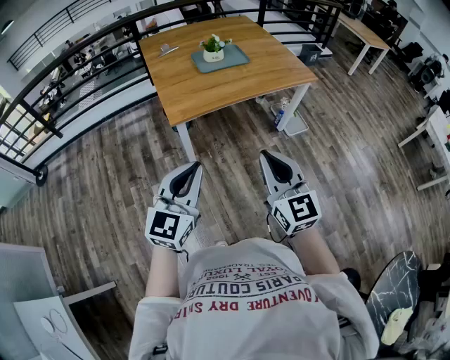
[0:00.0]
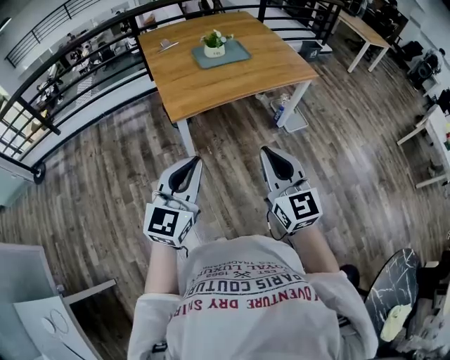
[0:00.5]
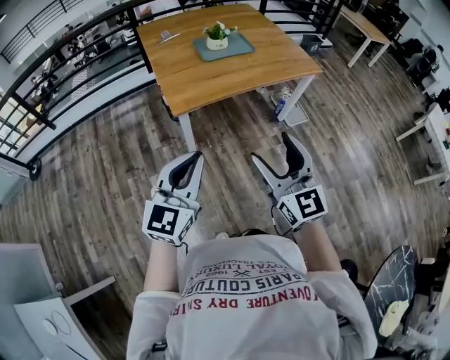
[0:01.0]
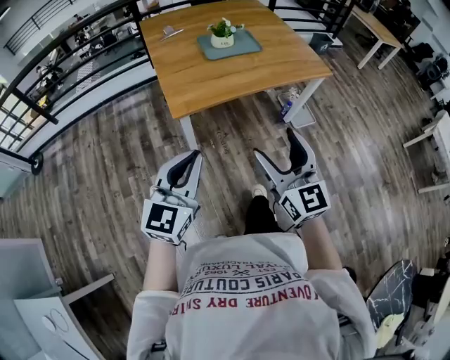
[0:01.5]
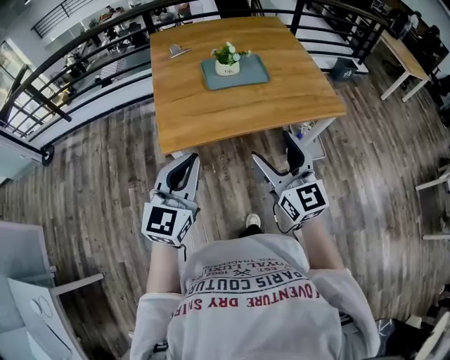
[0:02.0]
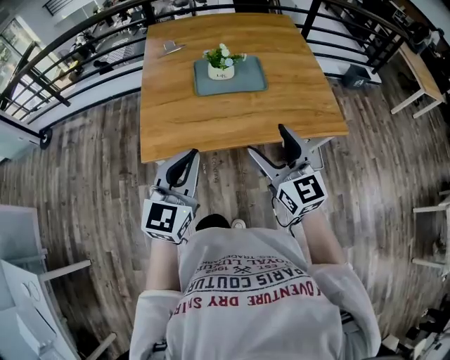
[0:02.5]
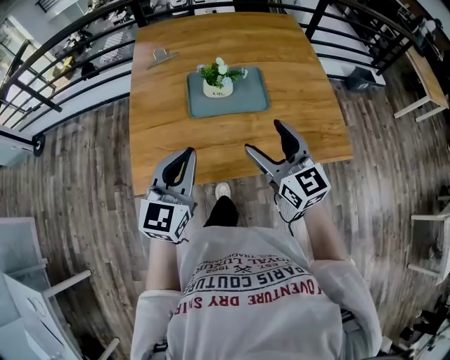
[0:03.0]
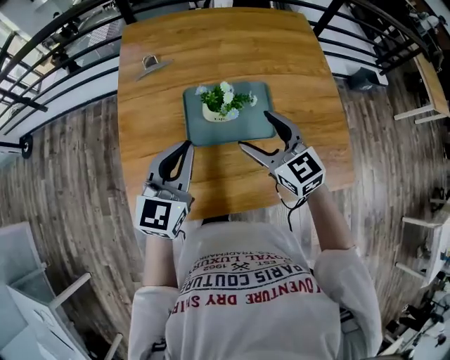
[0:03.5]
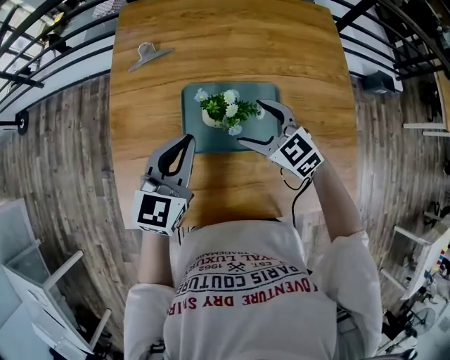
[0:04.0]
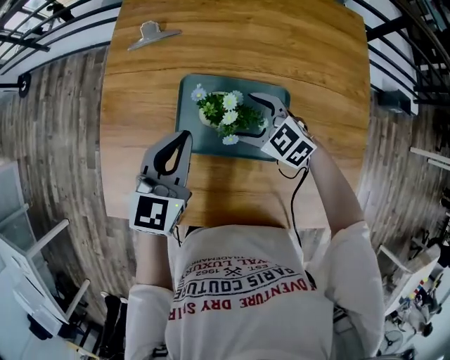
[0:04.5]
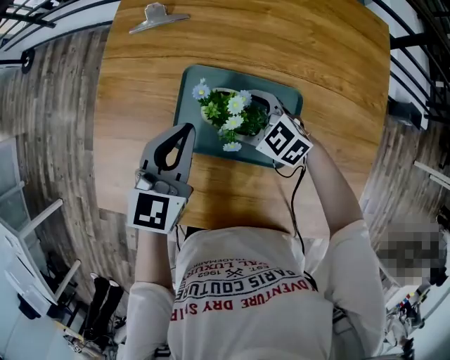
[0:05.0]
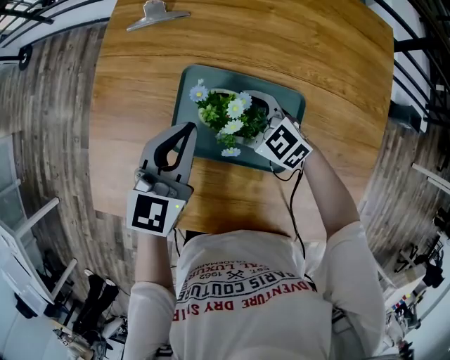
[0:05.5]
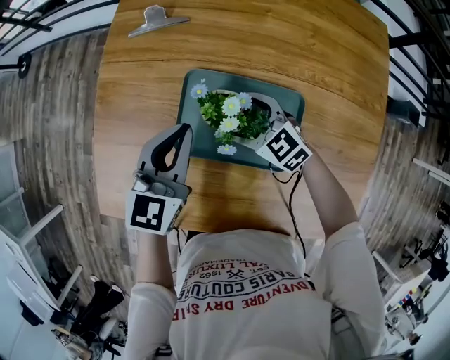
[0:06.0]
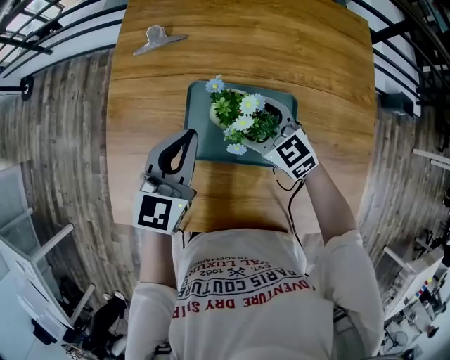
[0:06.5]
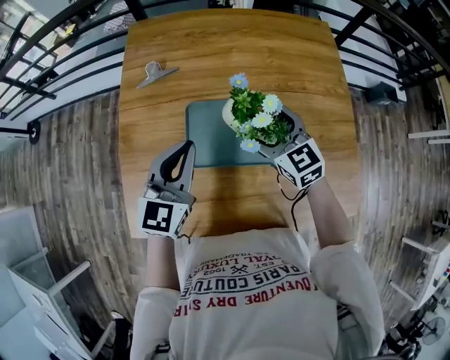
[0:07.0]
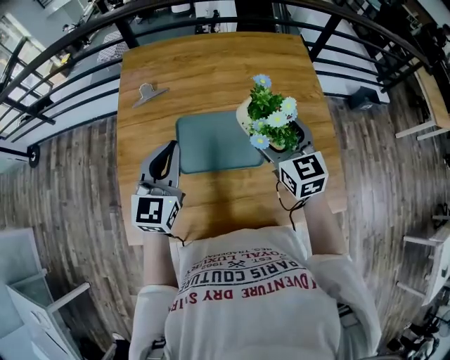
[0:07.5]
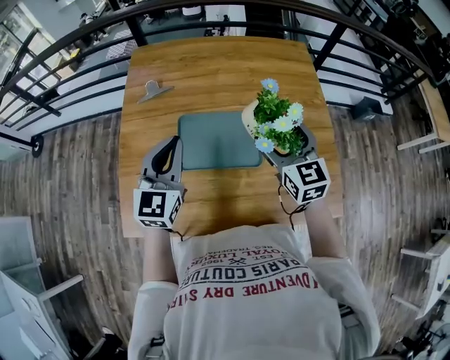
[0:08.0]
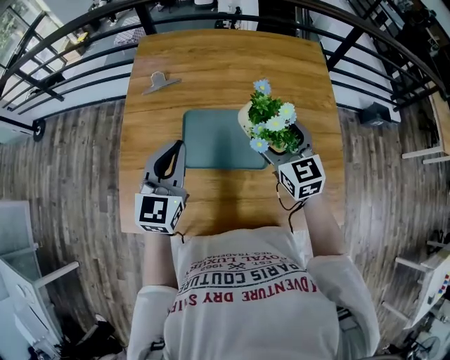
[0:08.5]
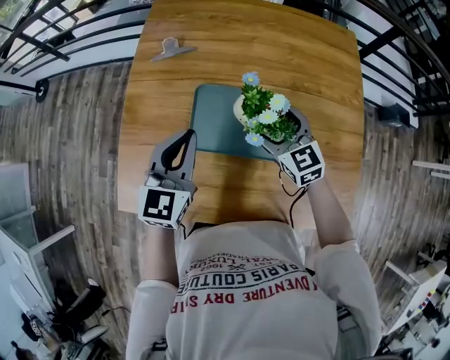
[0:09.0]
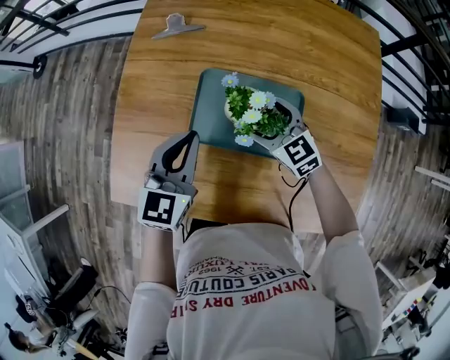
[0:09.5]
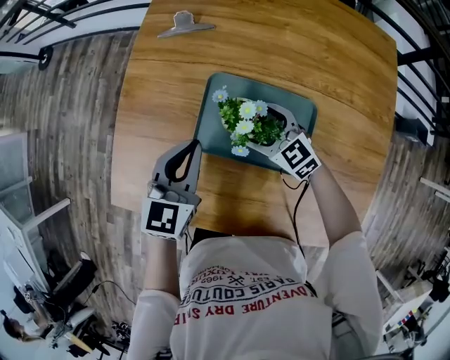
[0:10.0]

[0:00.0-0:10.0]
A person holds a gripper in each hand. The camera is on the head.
0:00.0 to 0:02.0: The grippers both shift forward by roughly 25 cm. The right gripper opens up.
0:02.0 to 0:04.0: Both grippers are carried forward, about 50 cm. The right gripper tips its fingers downward by roughly 30 degrees.
0:04.0 to 0:06.0: The right gripper goes about 15 cm downward and forward. The left gripper goes roughly 10 cm downward and forward.
0:06.0 to 0:08.0: The right gripper is displaced upward by approximately 25 cm, and changes its angle by roughly 50 degrees. Meanwhile the left gripper is displaced upward by about 15 cm.
0:08.0 to 0:10.0: The right gripper moves downward, about 25 cm, and swivels about 50 degrees, while the left gripper is displaced downward by about 15 cm, and swivels about 20 degrees.

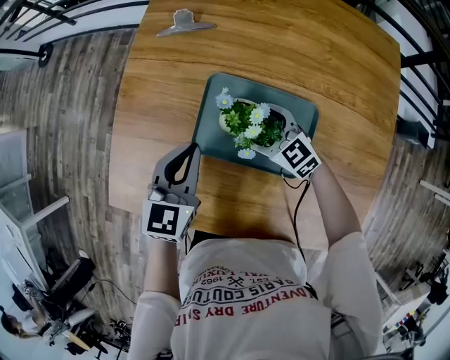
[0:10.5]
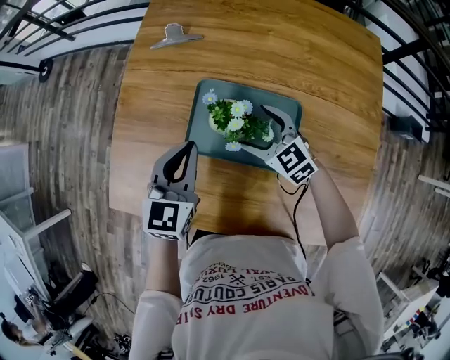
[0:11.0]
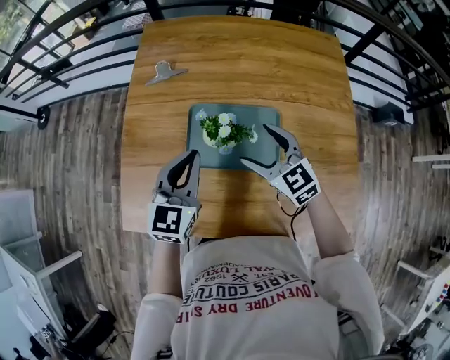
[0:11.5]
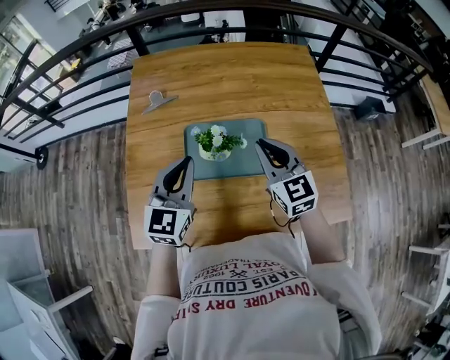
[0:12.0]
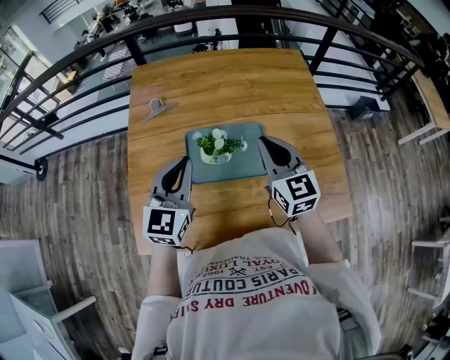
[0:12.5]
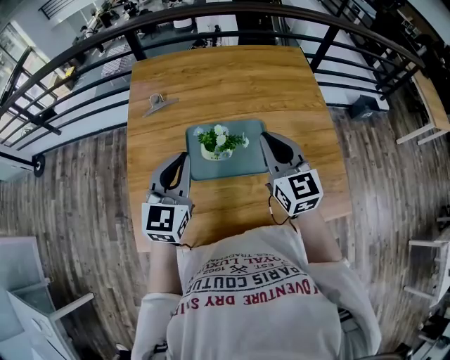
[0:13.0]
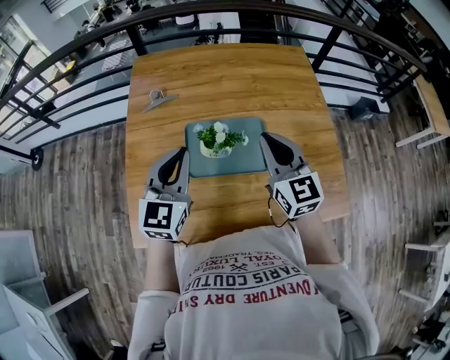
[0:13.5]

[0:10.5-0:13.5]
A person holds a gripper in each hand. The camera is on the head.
0:10.5 to 0:12.0: The right gripper moves upward, roughly 25 cm, rotates about 50 degrees, and closes up, while the left gripper moves upward, about 15 cm, and turns by approximately 20 degrees.
0:12.0 to 0:13.5: The grippers make only small movements.

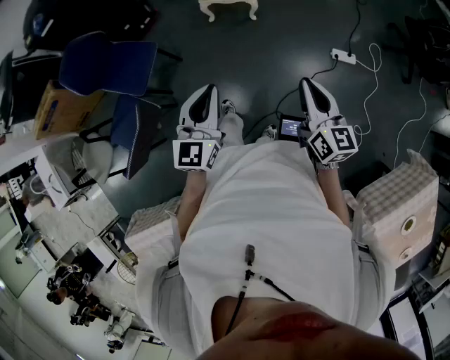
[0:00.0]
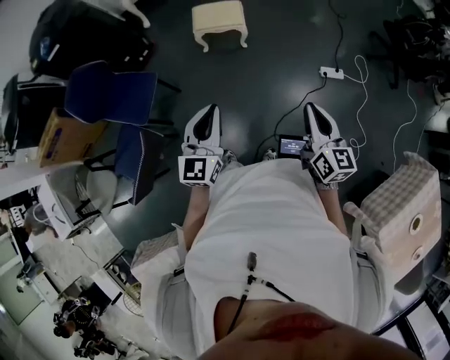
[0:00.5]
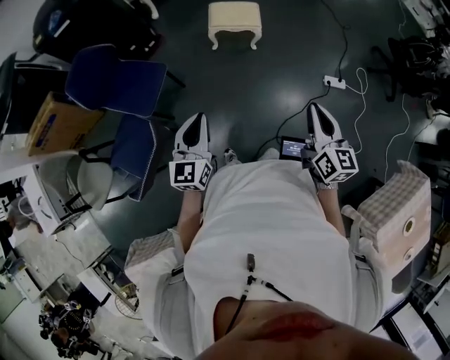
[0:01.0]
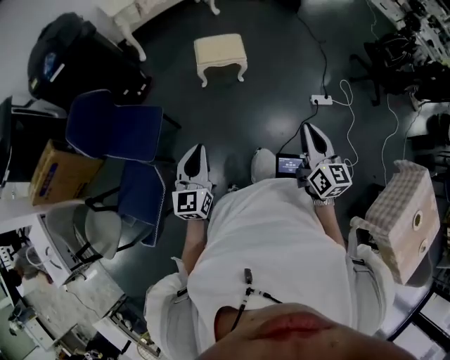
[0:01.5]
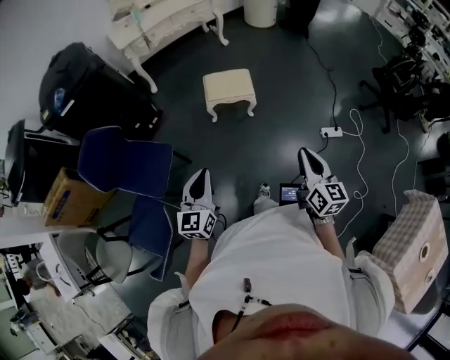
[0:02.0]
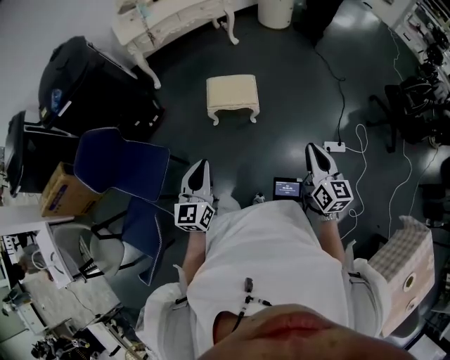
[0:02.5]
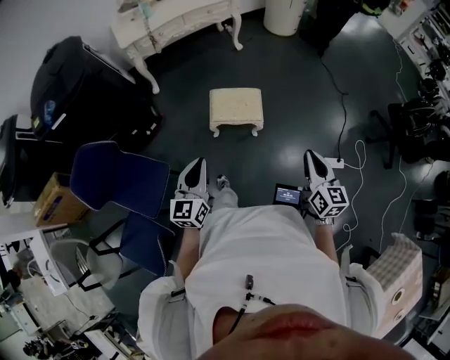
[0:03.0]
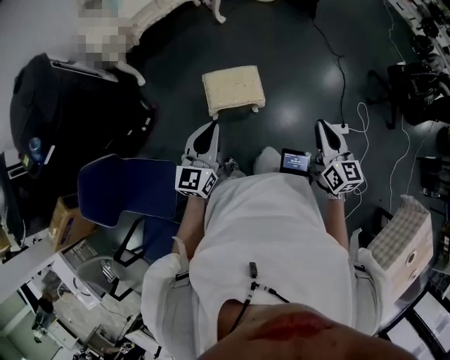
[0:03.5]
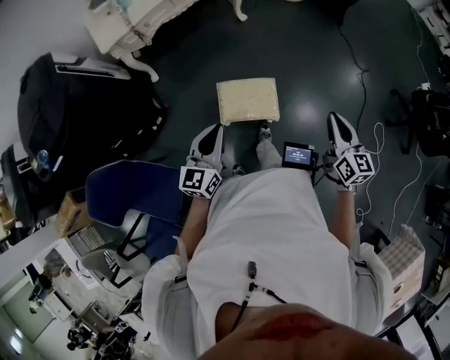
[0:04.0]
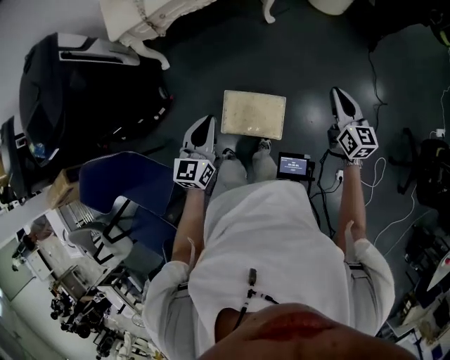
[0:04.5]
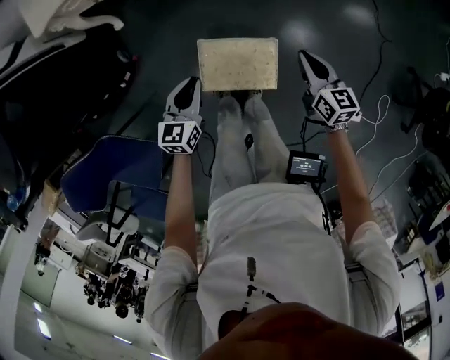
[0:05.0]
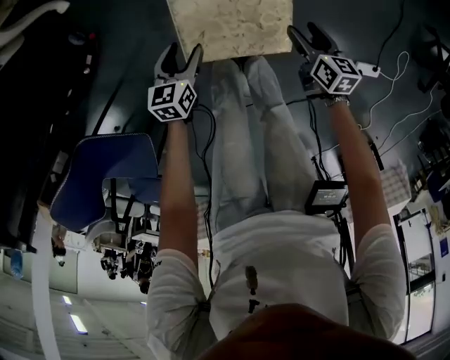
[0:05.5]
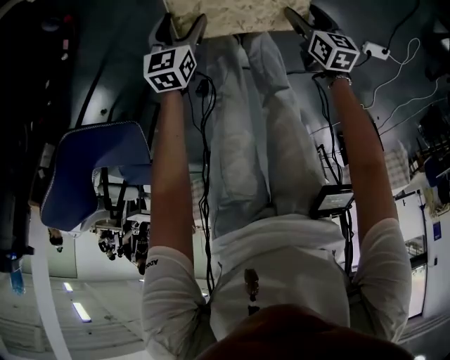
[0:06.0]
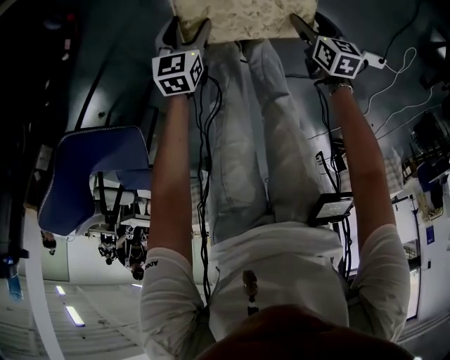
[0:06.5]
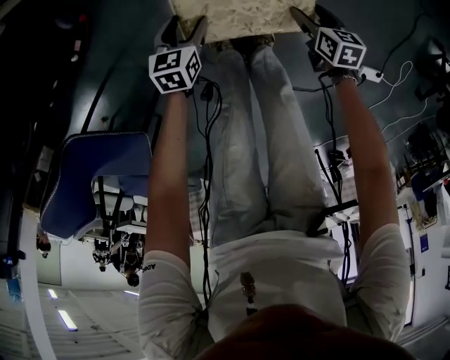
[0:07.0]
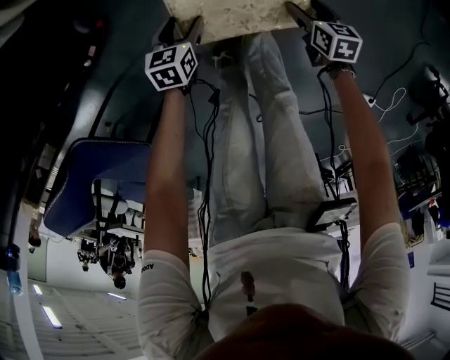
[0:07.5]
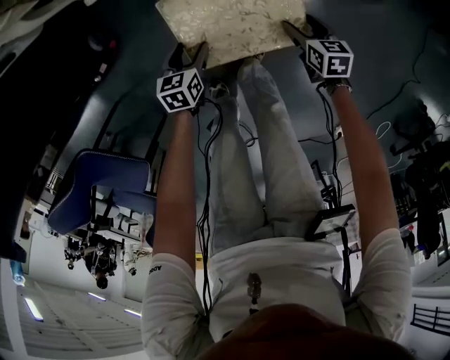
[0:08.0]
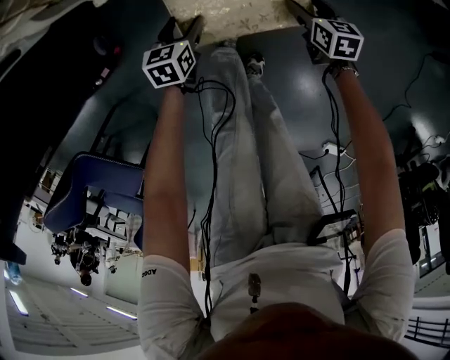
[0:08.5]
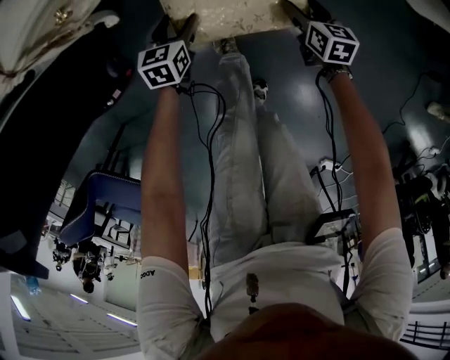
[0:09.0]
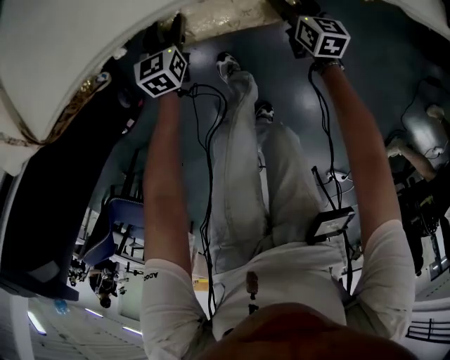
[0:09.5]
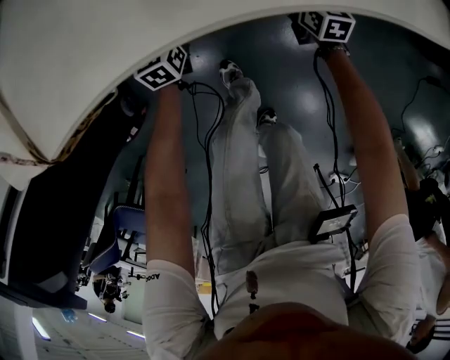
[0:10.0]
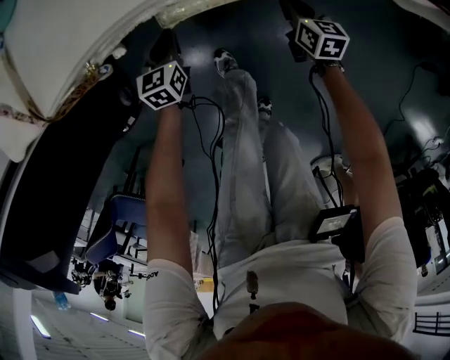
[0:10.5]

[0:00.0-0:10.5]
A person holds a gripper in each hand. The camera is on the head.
0:00.0 to 0:02.0: The right gripper goes some 10 cm to the left and forward. Meanwhile the left gripper moves to the left and forward, roughly 20 cm.
0:02.0 to 0:04.0: Both grippers are carried forward, roughly 60 cm.
0:04.0 to 0:06.5: Both grippers move downward, roughly 60 cm. The right gripper points its fingers some 50 degrees further downward, and opens, while the left gripper points its fingers approximately 40 degrees further downward, and opens up.
0:06.5 to 0:08.5: Both grippers are carried forward, about 50 cm. The left gripper changes its angle by roughly 20 degrees. The right gripper rotates roughly 30 degrees.
0:08.5 to 0:10.5: Both grippers move forward, approximately 25 cm. The right gripper closes. Meanwhile the left gripper closes its fingers.

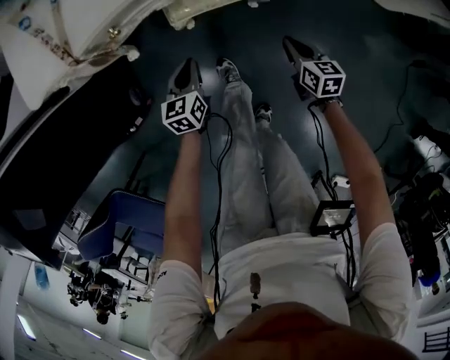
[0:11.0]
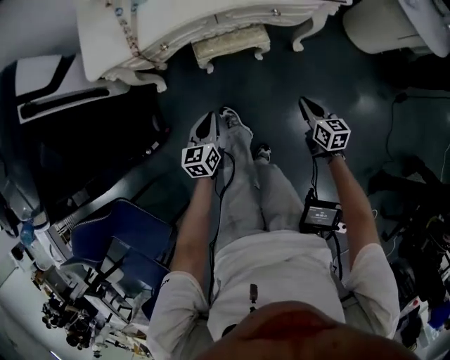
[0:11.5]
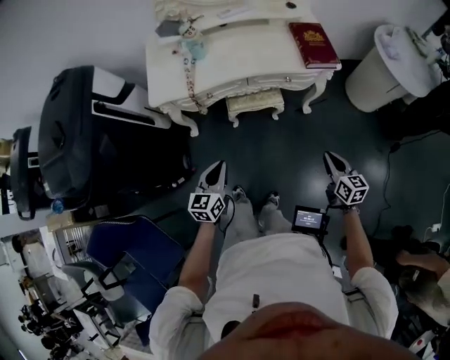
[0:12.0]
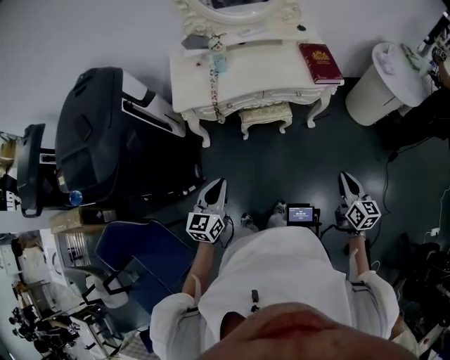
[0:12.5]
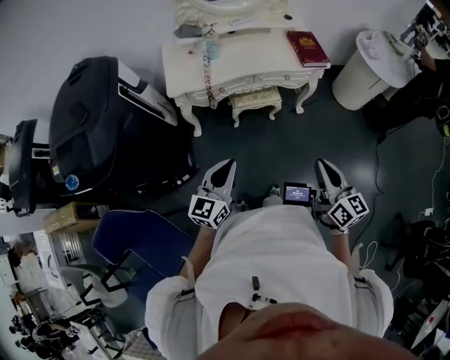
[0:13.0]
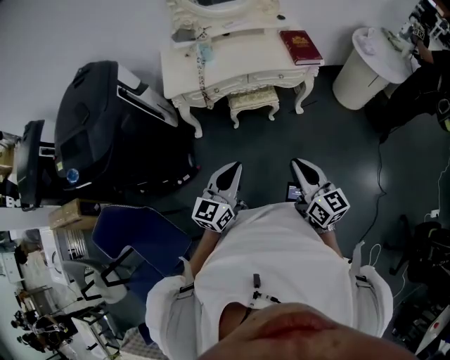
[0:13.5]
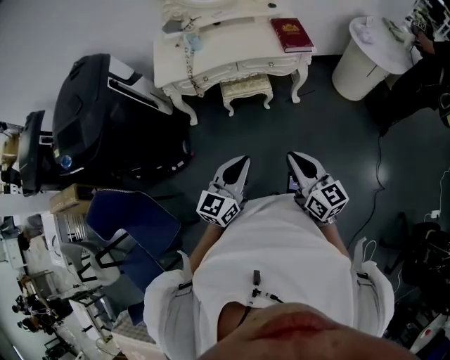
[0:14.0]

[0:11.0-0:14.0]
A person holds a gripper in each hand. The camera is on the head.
0:11.0 to 0:12.5: Both grippers travel together upward and backward, approximately 60 cm. The left gripper changes its angle by approximately 20 degrees; the right gripper changes its angle by approximately 20 degrees.
0:12.5 to 0:14.0: The left gripper shifts approximately 25 cm to the right and backward, while the right gripper moves backward and upward, roughly 15 cm, and swivels about 20 degrees.
